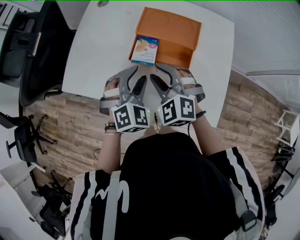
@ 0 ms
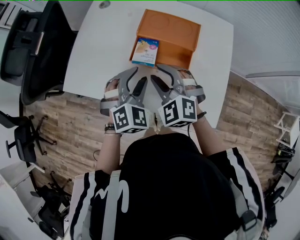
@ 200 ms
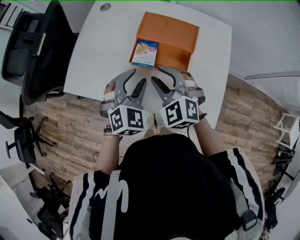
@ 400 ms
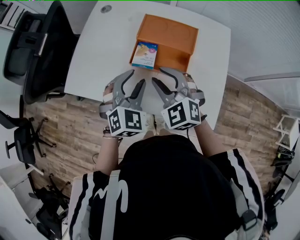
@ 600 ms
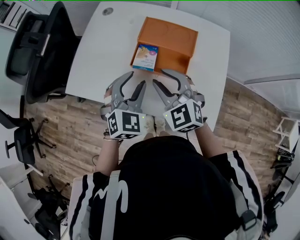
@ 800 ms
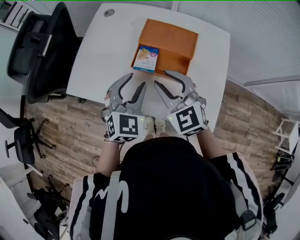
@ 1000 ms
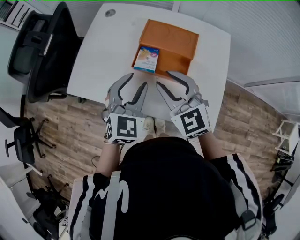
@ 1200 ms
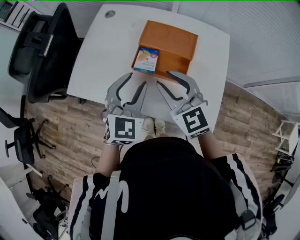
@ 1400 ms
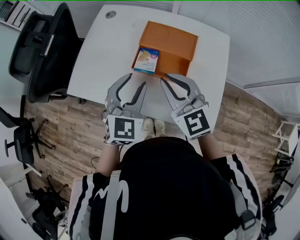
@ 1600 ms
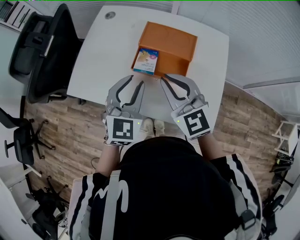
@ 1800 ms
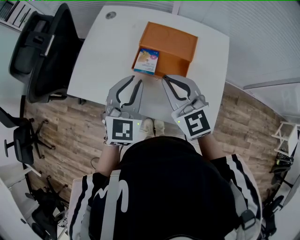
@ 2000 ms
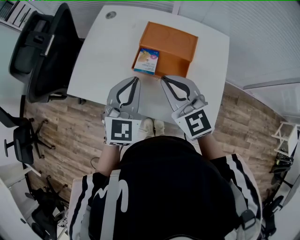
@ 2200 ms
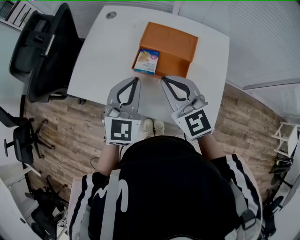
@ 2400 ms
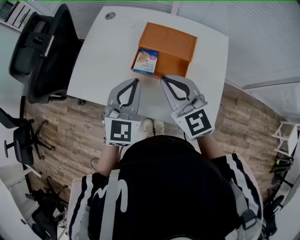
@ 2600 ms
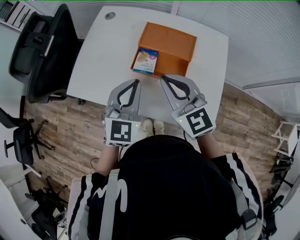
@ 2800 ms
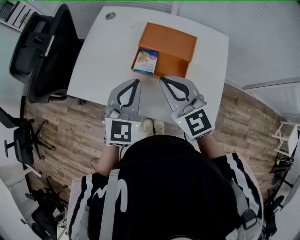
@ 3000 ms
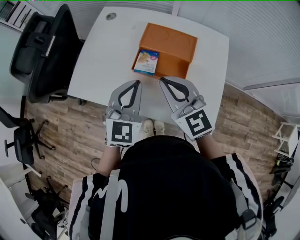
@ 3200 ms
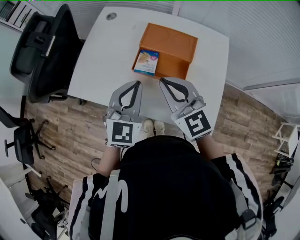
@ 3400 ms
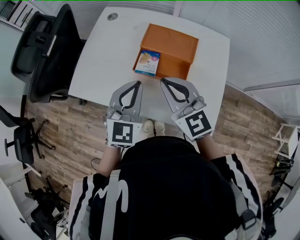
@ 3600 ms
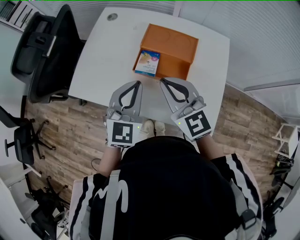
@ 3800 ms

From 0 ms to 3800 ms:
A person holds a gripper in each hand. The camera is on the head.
From 0 ms to 1200 ms: Both grippers travel together upward, about 10 cm. The left gripper rotates approximately 30 degrees. Meanwhile the right gripper swivels roughly 30 degrees.
From 1200 ms to 2600 ms: The left gripper closes, while the right gripper closes up.
From 2600 ms to 3800 ms: Both grippers stay about where they are.

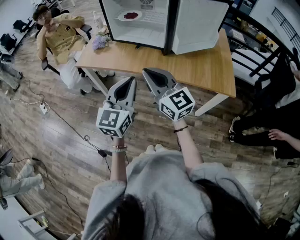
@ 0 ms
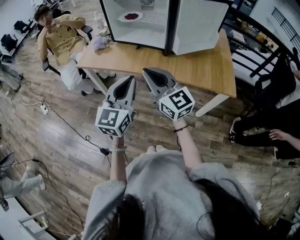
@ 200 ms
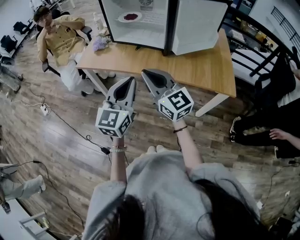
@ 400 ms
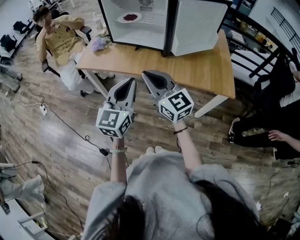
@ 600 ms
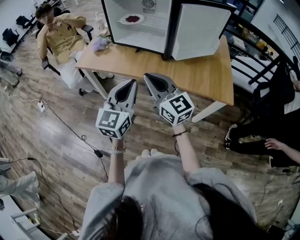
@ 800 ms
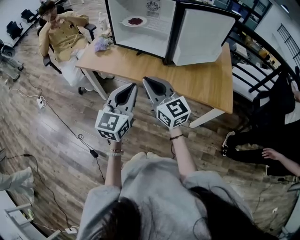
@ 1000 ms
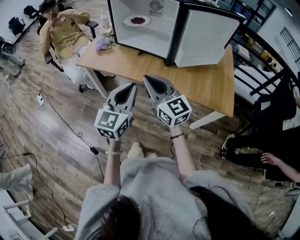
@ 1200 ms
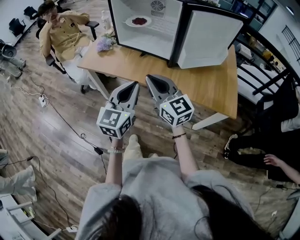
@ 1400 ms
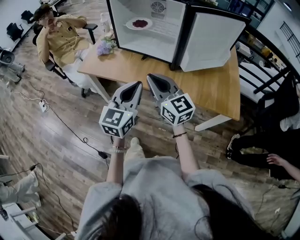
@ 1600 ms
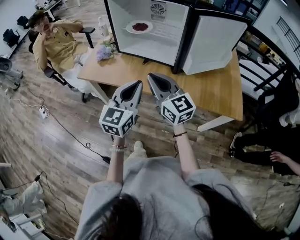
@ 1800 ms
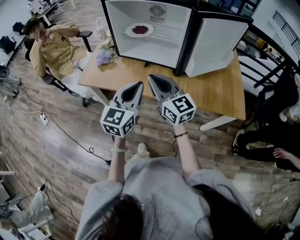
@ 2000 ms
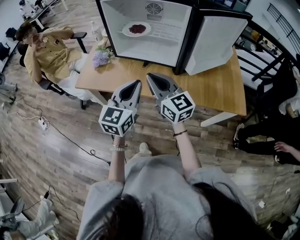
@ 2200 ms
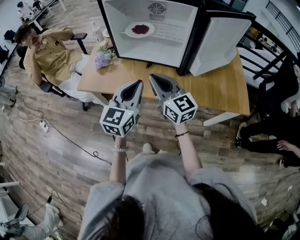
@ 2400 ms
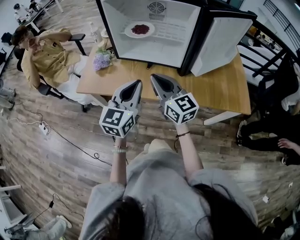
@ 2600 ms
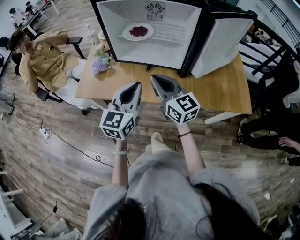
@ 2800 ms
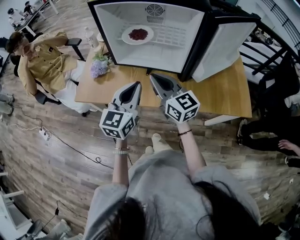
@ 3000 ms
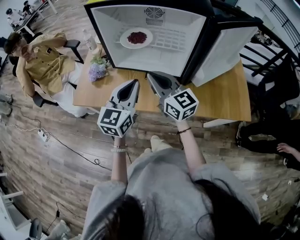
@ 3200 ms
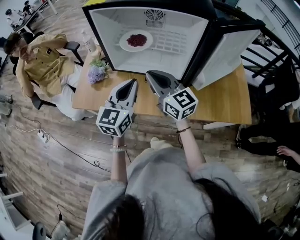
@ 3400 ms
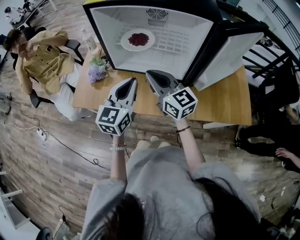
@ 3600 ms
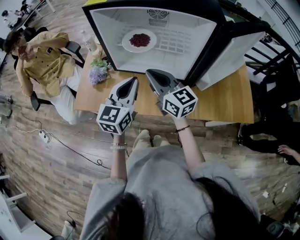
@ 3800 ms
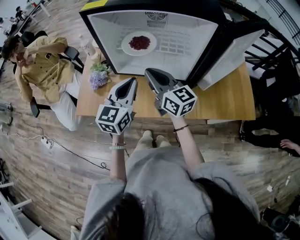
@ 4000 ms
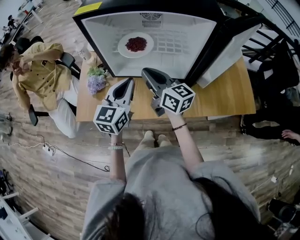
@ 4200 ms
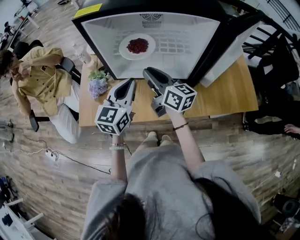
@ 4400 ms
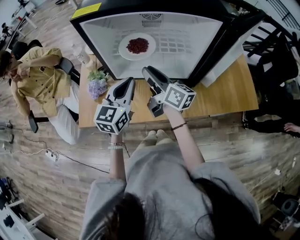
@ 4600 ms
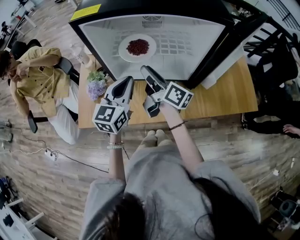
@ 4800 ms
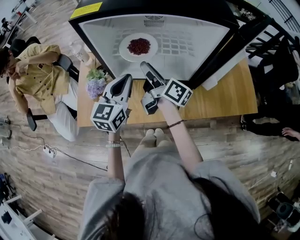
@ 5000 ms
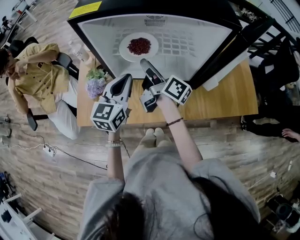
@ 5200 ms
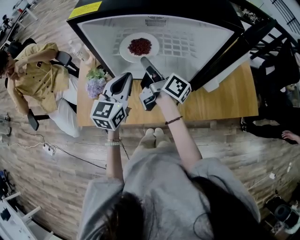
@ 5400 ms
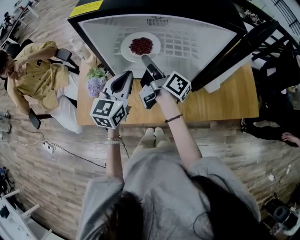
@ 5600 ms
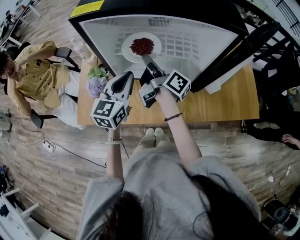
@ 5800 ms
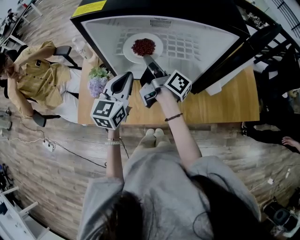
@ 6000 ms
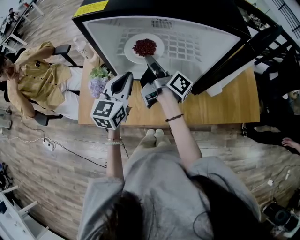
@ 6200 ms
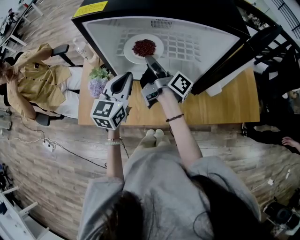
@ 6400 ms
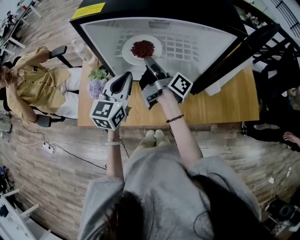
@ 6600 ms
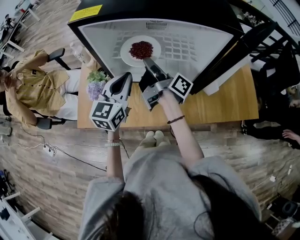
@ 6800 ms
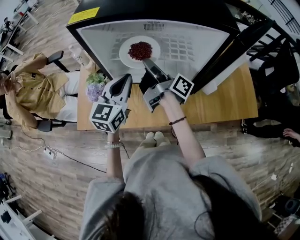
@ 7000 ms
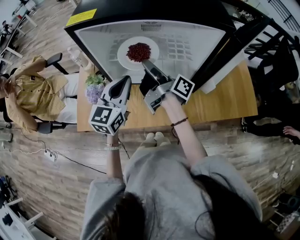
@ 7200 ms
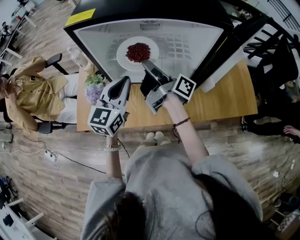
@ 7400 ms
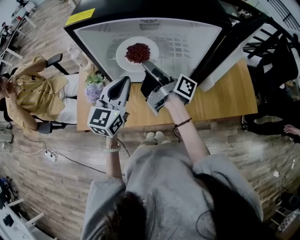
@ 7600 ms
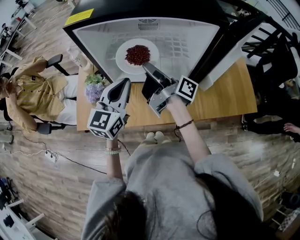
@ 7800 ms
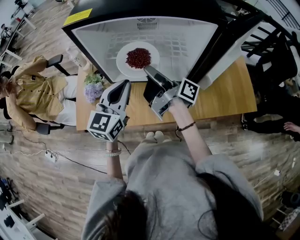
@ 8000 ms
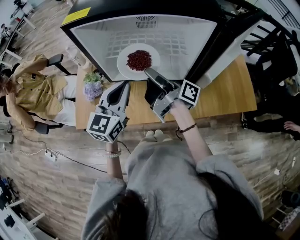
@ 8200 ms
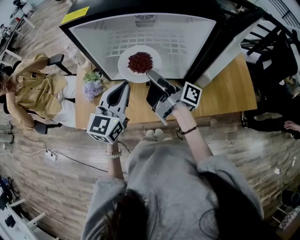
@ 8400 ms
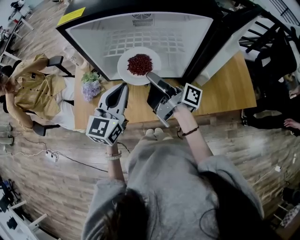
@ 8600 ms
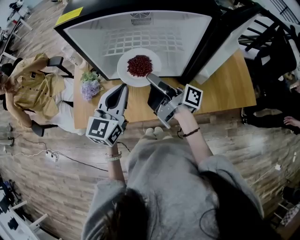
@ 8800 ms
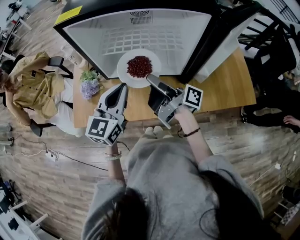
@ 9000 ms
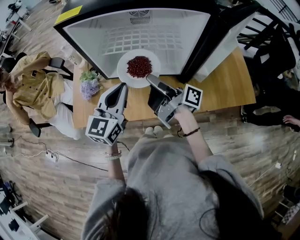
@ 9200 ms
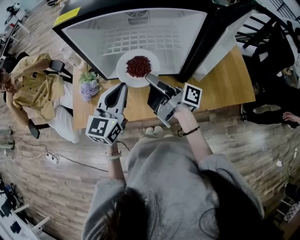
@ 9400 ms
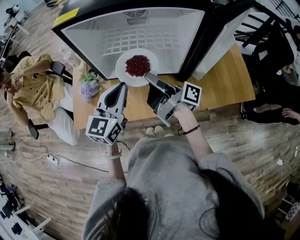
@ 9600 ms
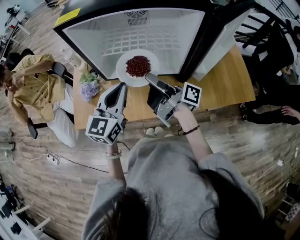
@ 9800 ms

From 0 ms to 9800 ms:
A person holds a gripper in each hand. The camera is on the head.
From 0 ms to 1400 ms: The grippers both shift forward by roughly 5 cm.
From 1400 ms to 2800 ms: The right gripper is displaced forward by roughly 15 cm; the left gripper goes some 20 cm forward and to the left.
From 2800 ms to 4200 ms: The grippers both shift forward by some 15 cm.
From 4200 ms to 5600 ms: Both grippers travel together forward, roughly 5 cm. The right gripper rolls clockwise, seen from behind, by some 50 degrees, and opens.
From 5600 ms to 7000 ms: The grippers stay close to where they were, moving slightly.
From 7000 ms to 8400 ms: The two grippers go roughly 5 cm backward.
From 8400 ms to 9800 ms: The grippers make only small movements.

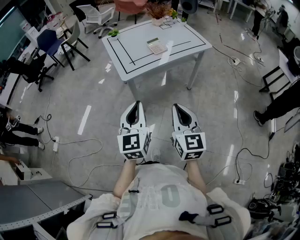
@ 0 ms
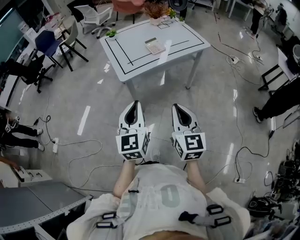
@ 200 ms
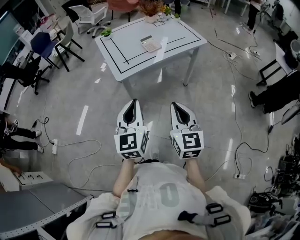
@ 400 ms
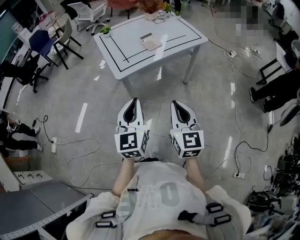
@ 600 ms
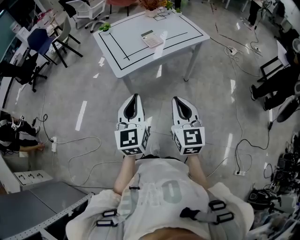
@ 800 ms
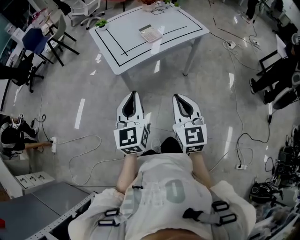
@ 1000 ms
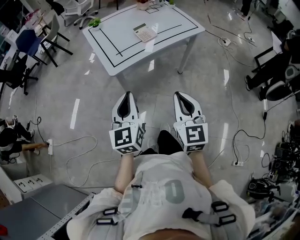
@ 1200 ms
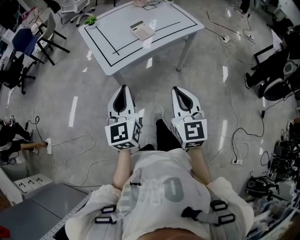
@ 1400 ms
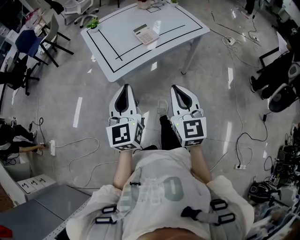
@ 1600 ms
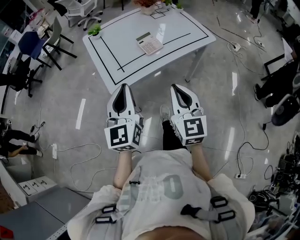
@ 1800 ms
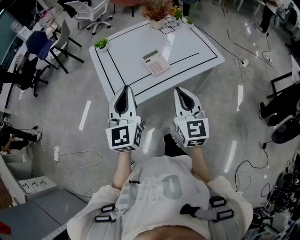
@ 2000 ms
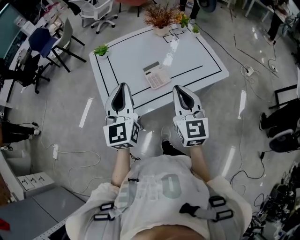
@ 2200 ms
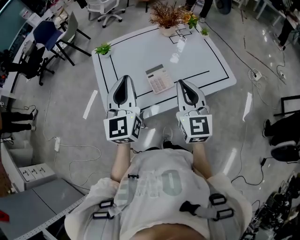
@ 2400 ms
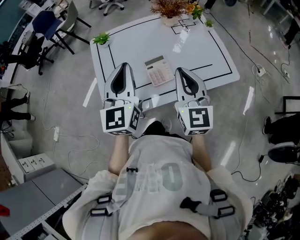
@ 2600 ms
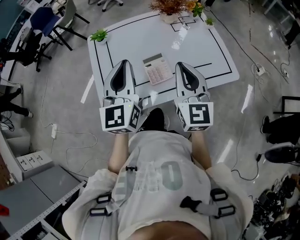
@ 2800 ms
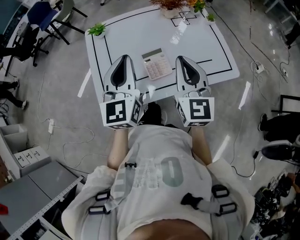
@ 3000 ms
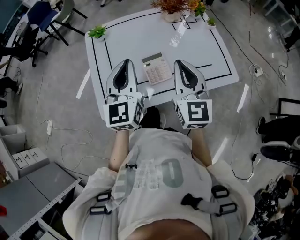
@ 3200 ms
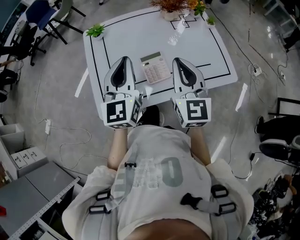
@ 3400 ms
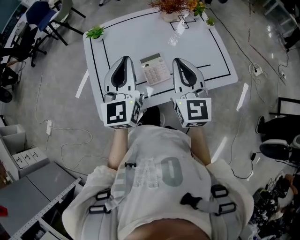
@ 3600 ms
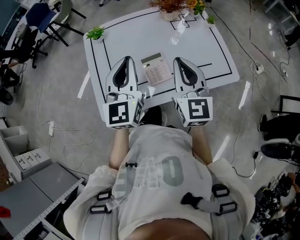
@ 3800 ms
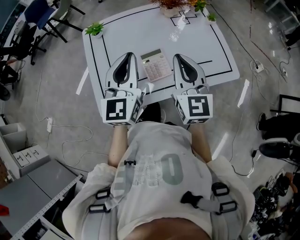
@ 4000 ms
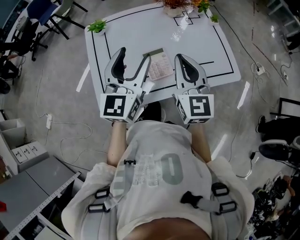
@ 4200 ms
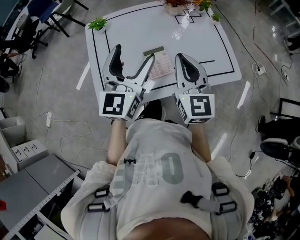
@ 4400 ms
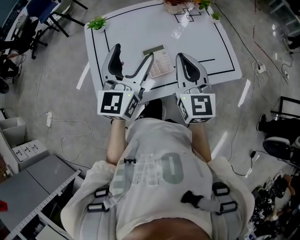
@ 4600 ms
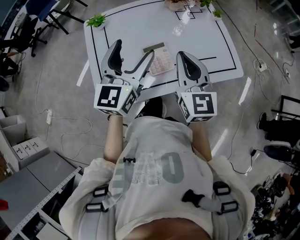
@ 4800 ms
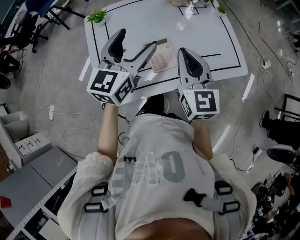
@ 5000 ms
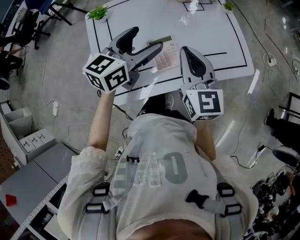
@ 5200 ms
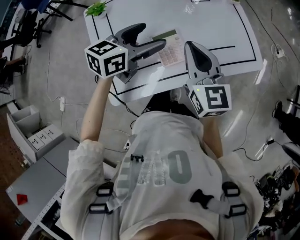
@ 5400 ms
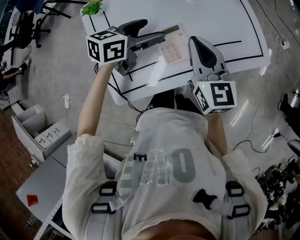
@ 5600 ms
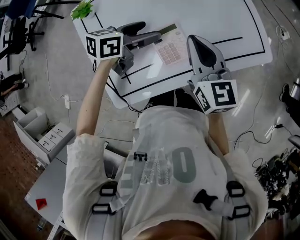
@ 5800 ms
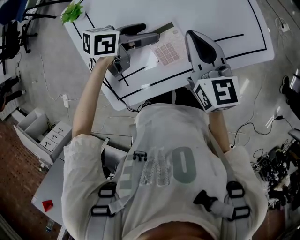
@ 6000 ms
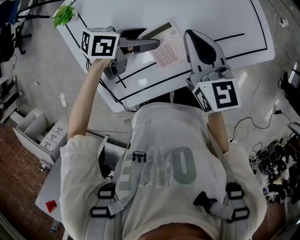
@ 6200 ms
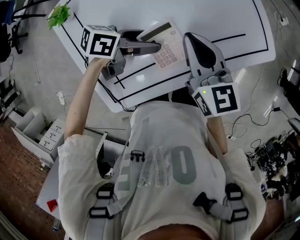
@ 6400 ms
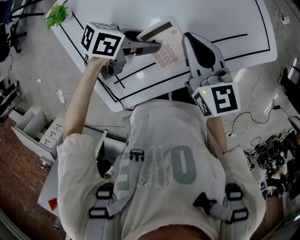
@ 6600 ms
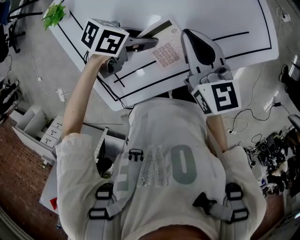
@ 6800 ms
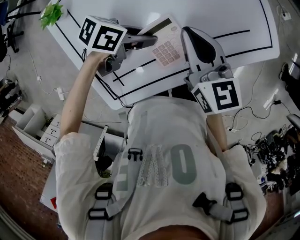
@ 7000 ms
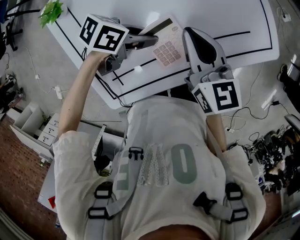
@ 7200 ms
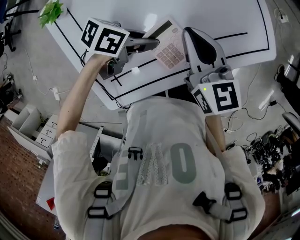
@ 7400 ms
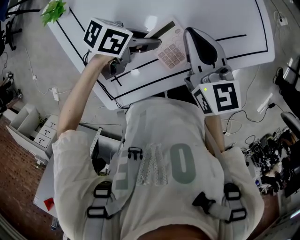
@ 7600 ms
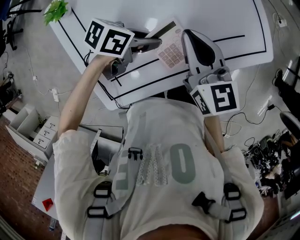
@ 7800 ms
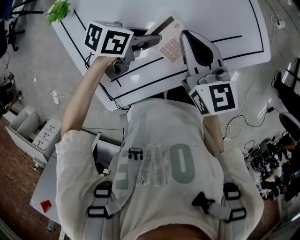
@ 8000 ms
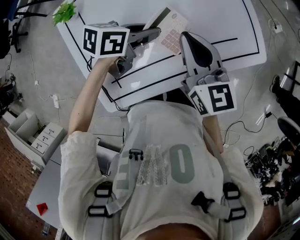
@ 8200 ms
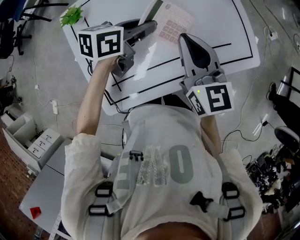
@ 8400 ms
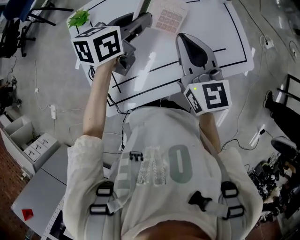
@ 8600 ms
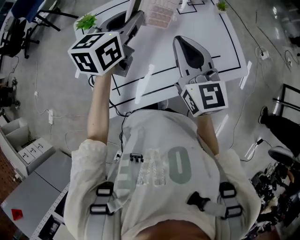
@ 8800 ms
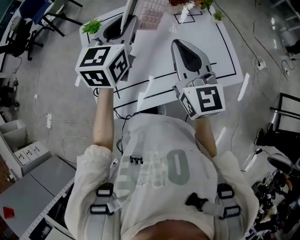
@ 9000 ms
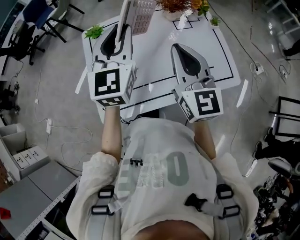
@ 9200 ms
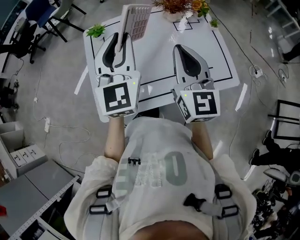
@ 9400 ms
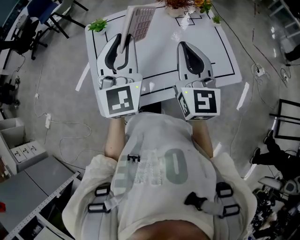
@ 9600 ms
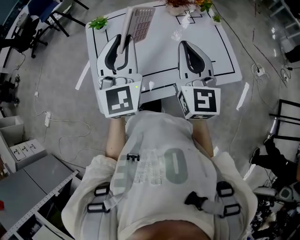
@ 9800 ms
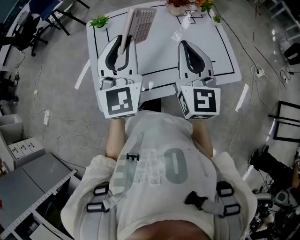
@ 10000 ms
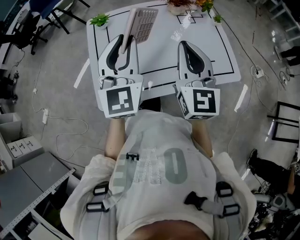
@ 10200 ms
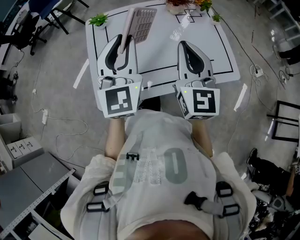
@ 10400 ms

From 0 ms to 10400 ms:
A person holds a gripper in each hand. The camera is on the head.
From 0 ms to 1400 ms: Both grippers move forward, about 10 cm.
From 1400 ms to 3000 ms: Both grippers move forward, approximately 40 cm.
From 3000 ms to 4400 ms: The left gripper opens.
From 4400 ms to 6000 ms: The right gripper is displaced downward by approximately 10 cm, and swivels some 20 degrees. The left gripper heads downward, covering about 25 cm, and tips its fingers downward by some 30 degrees.
From 6000 ms to 7400 ms: The left gripper heads downward, covering roughly 5 cm, changes its angle by about 20 degrees, and closes up.
From 7400 ms to 9000 ms: The right gripper travels upward by about 20 cm, and turns by about 30 degrees. The left gripper shifts roughly 30 cm upward, and swivels approximately 90 degrees.
From 9000 ms to 10400 ms: The left gripper goes some 15 cm backward, and changes its angle by roughly 30 degrees. Meanwhile the right gripper is displaced backward by some 5 cm.
